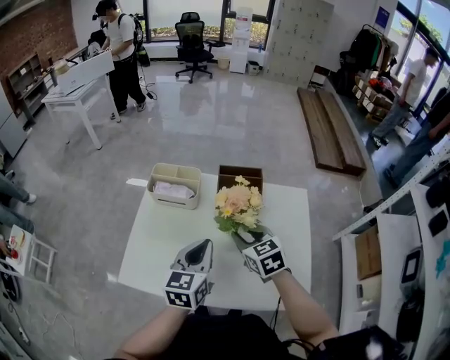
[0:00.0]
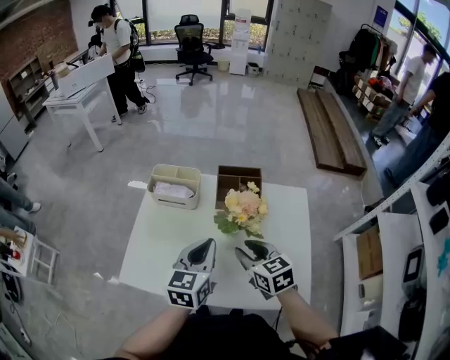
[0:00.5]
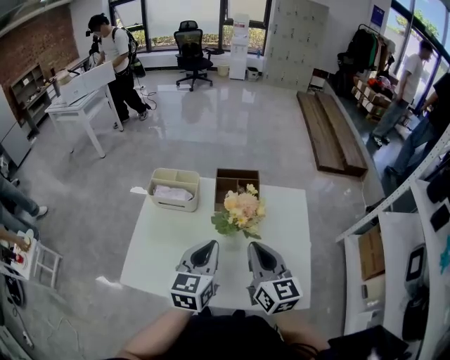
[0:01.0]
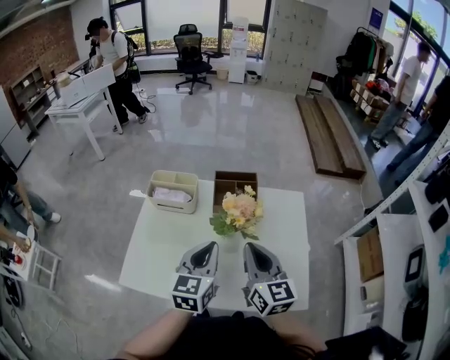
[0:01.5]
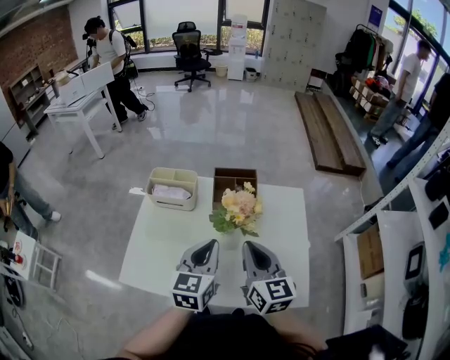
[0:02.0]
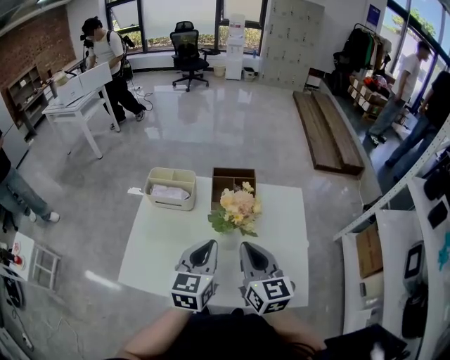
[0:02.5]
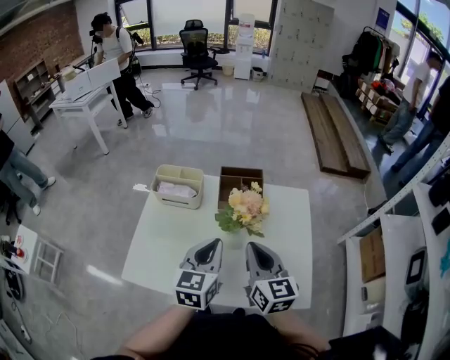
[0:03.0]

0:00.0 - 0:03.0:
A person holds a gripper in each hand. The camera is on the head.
0:00.0 - 0:01.5: The right gripper heads upward and backward, covering some 10 cm, rotates some 40 degrees, and closes.
0:01.5 - 0:03.0: The grippers move only a little.

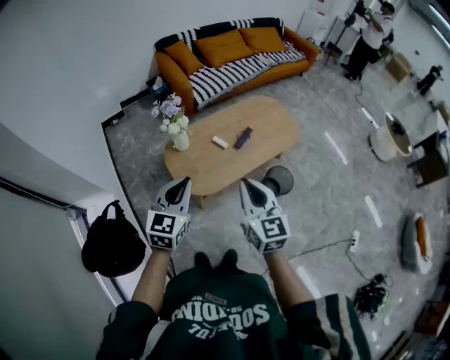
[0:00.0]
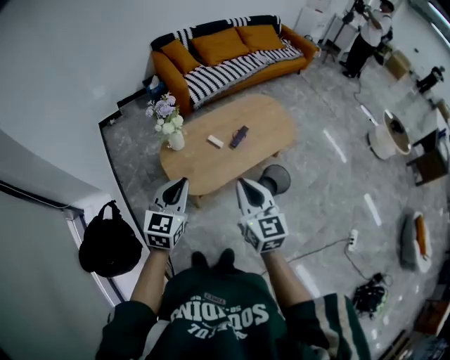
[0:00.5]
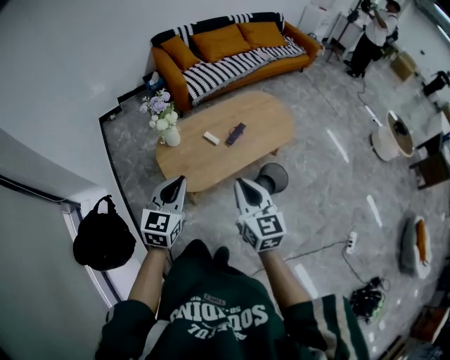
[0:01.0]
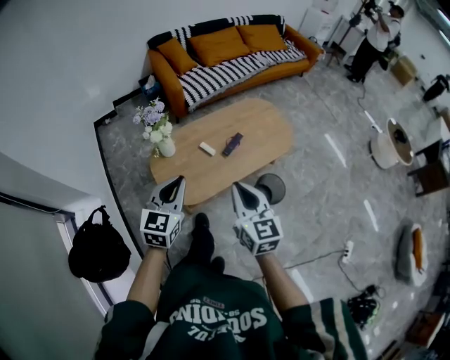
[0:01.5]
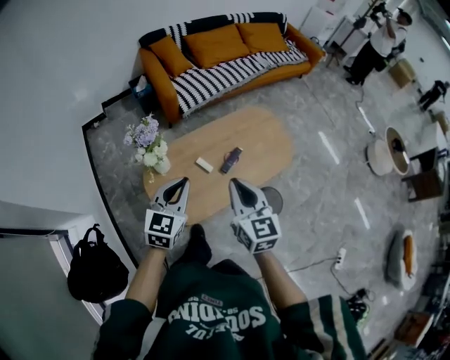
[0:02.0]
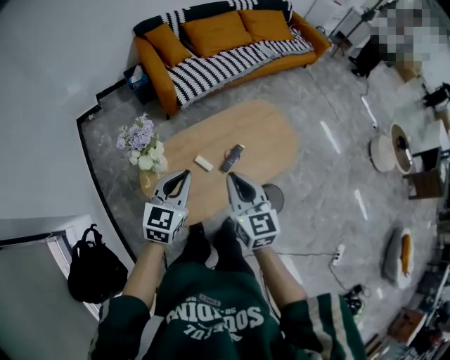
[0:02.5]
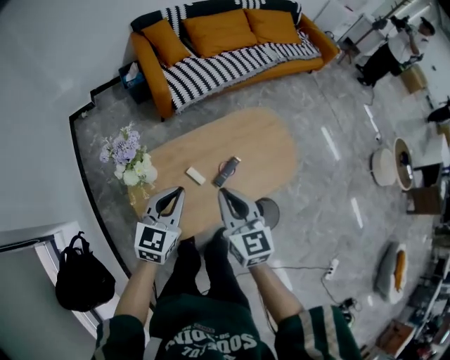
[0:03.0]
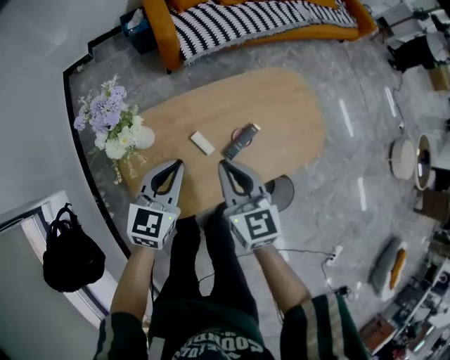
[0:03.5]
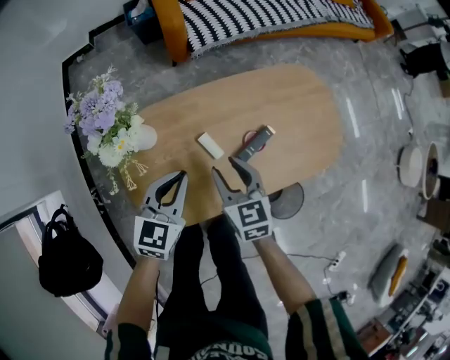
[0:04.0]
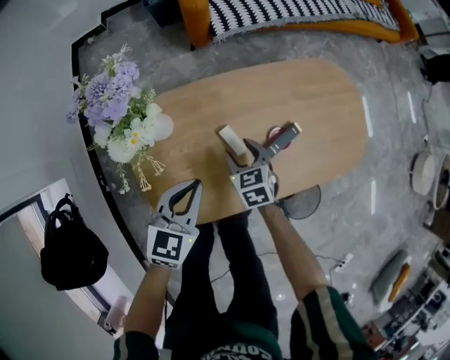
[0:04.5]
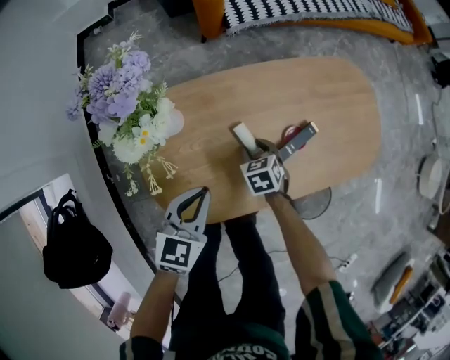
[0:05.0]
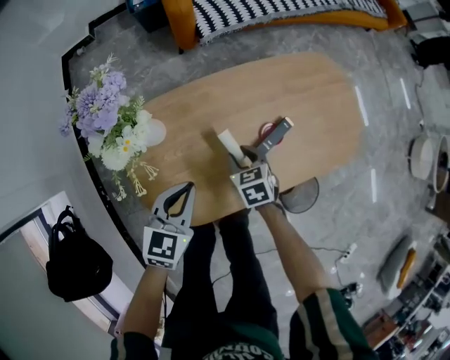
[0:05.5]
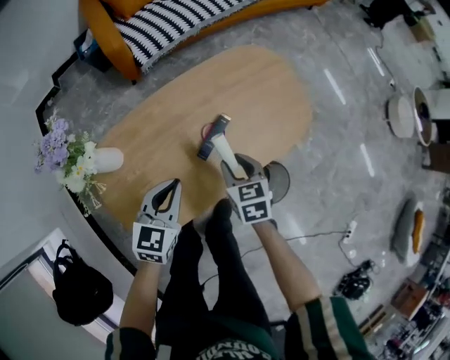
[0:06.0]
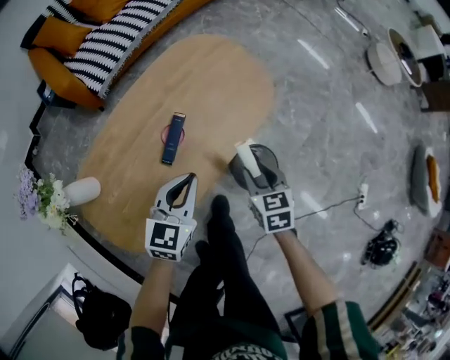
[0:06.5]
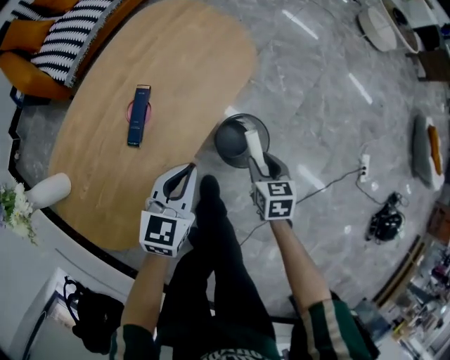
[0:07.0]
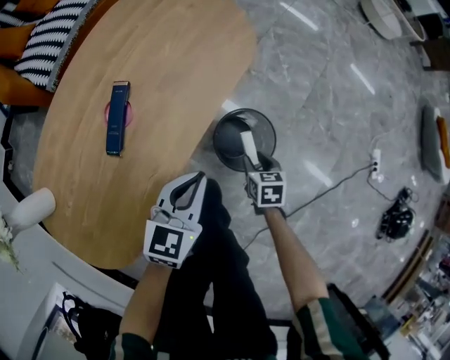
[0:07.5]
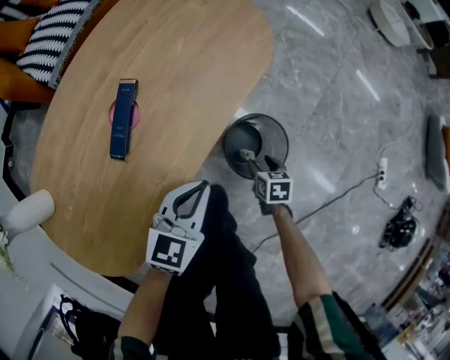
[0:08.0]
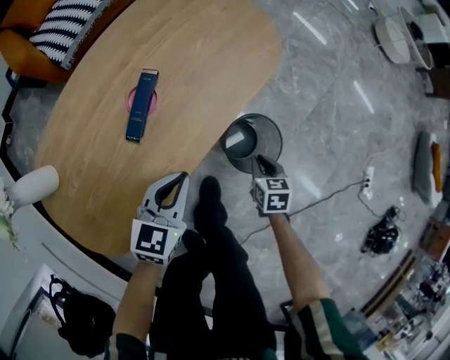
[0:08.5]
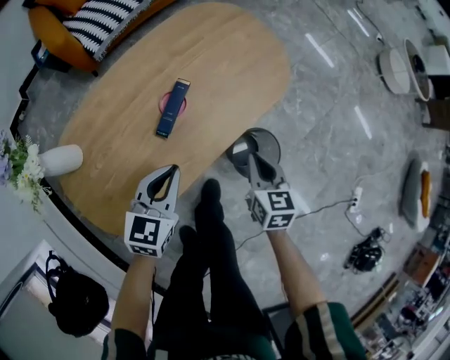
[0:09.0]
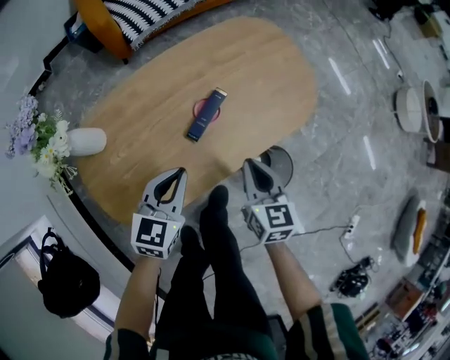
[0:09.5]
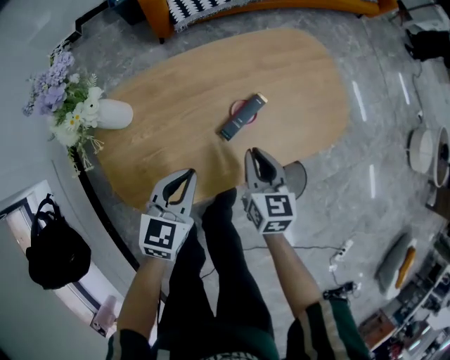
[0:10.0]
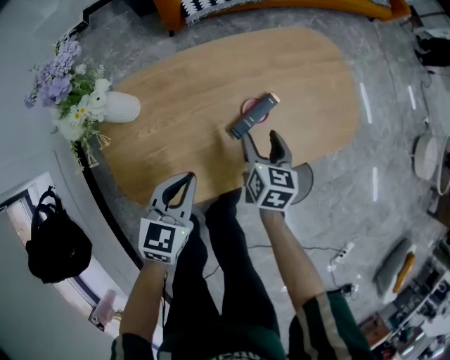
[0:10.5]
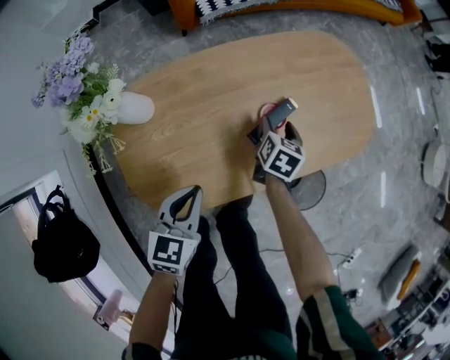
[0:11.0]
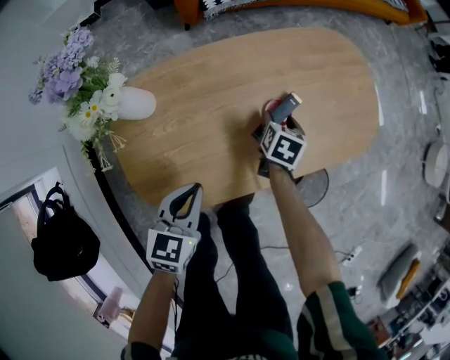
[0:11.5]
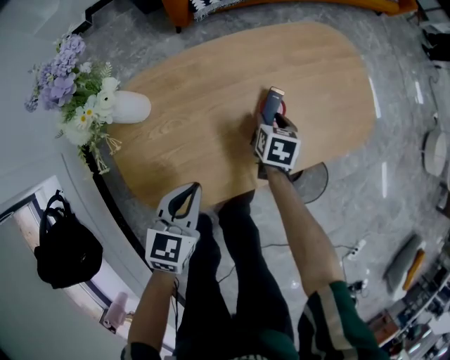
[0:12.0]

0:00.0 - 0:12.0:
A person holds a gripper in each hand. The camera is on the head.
0:00.0 - 0:02.0: The two grippers go some 25 cm forward.
0:02.0 - 0:04.0: Both grippers travel together downward and forward, some 35 cm. The right gripper turns by about 30 degrees, and opens.
0:04.0 - 0:06.0: The right gripper is displaced to the right by some 15 cm, goes downward and returns, about 25 cm each way, and turns by about 20 degrees. The left gripper moves to the right, some 10 cm.
0:06.0 - 0:08.0: The right gripper is displaced downward by some 35 cm, and rotates approximately 40 degrees. Meanwhile the left gripper shifts by about 35 cm, and swivels about 30 degrees.
0:08.0 - 0:10.0: The left gripper ends up roughly 30 cm from where it was, and turns by approximately 40 degrees. The right gripper shifts about 35 cm upward, changes its angle by approximately 40 degrees, and closes up.
0:10.0 - 0:12.0: The left gripper changes place by roughly 5 cm. Meanwhile the right gripper travels downward and forward by some 15 cm, changes its angle by approximately 30 degrees, and opens.

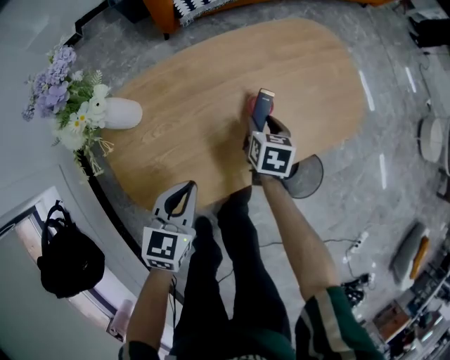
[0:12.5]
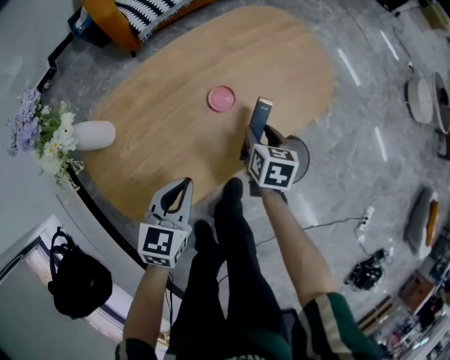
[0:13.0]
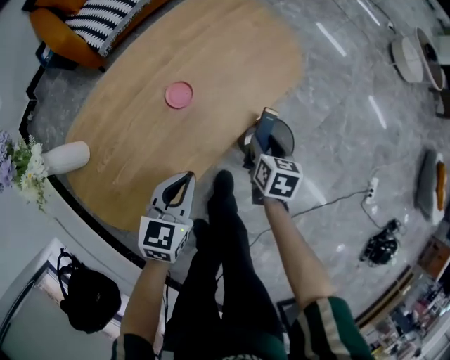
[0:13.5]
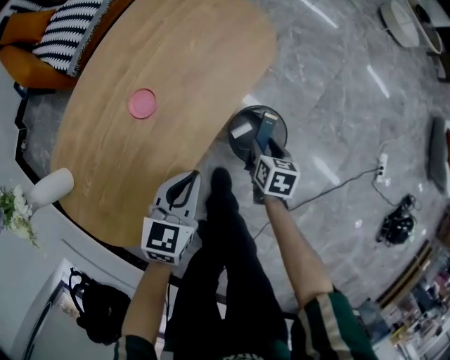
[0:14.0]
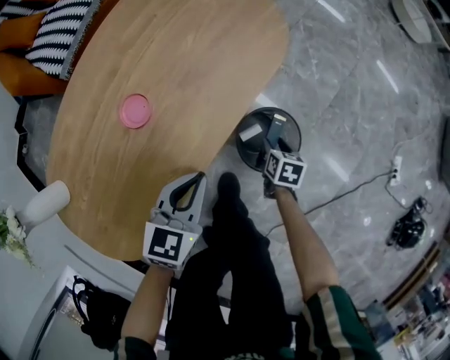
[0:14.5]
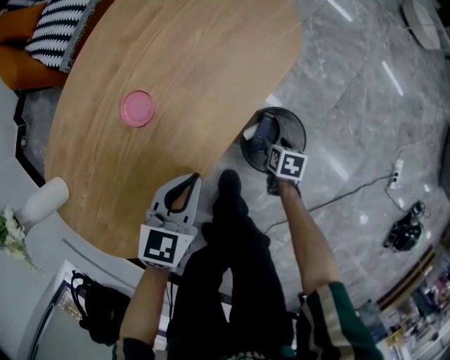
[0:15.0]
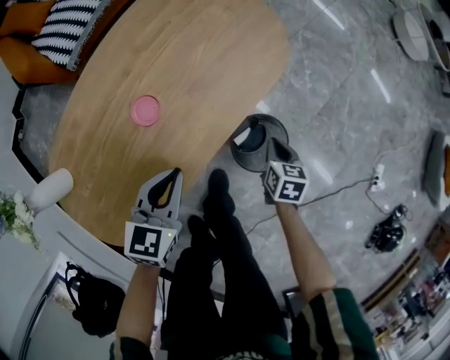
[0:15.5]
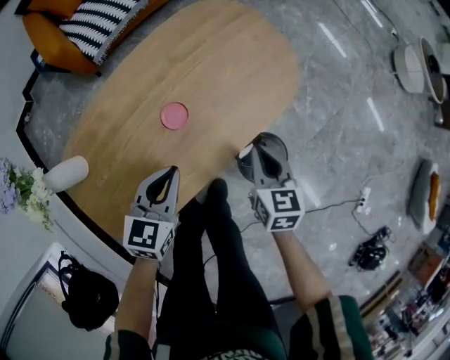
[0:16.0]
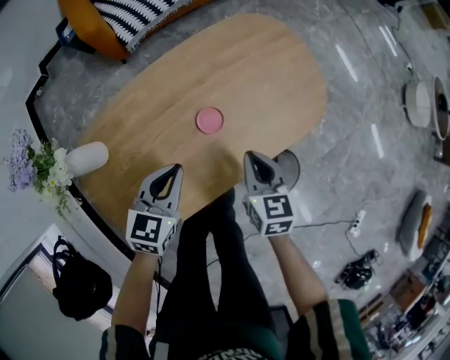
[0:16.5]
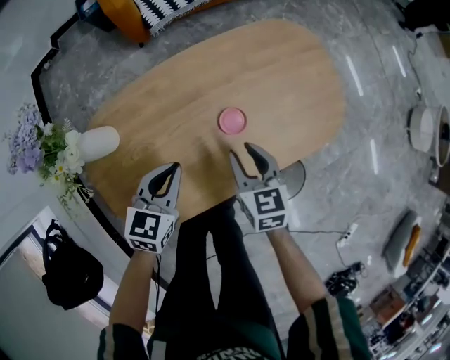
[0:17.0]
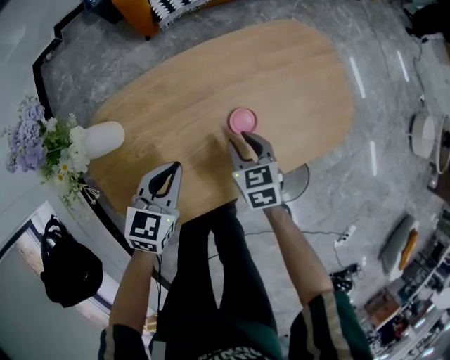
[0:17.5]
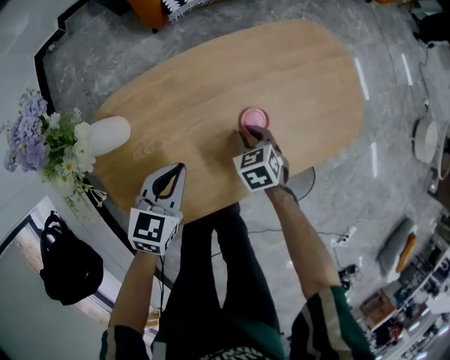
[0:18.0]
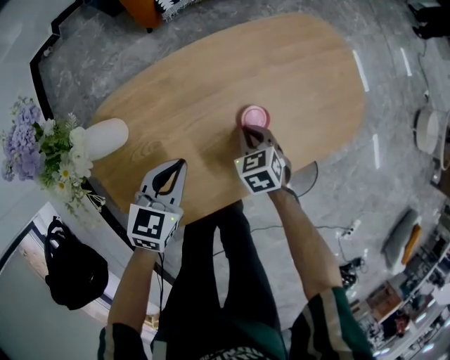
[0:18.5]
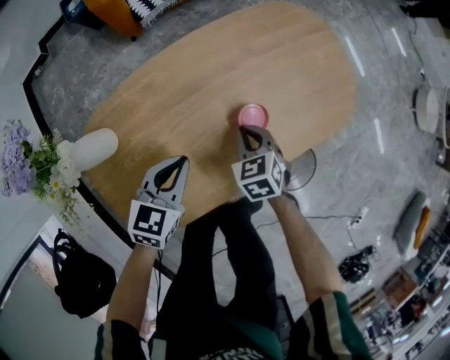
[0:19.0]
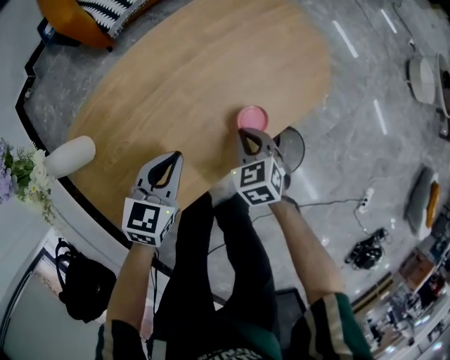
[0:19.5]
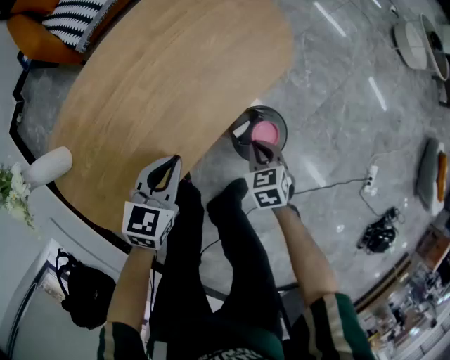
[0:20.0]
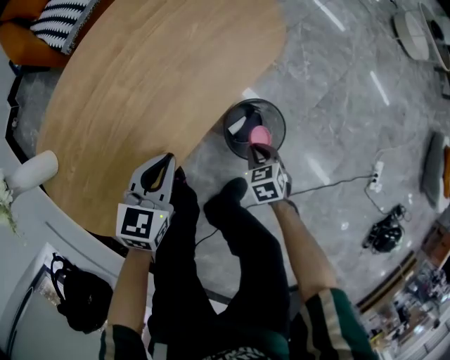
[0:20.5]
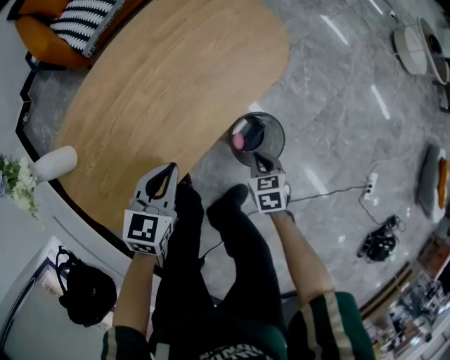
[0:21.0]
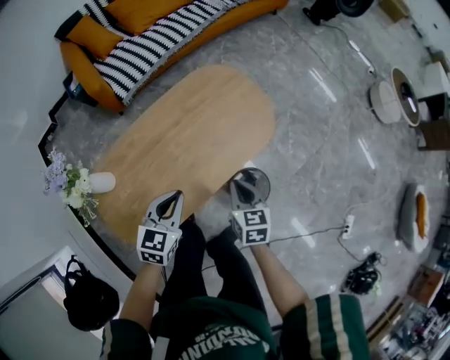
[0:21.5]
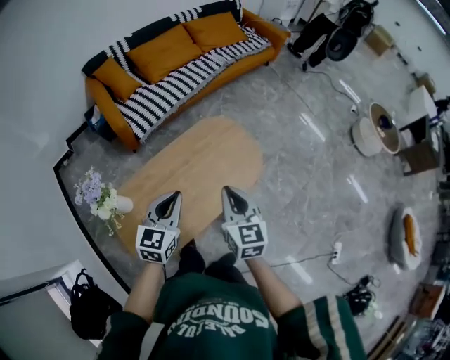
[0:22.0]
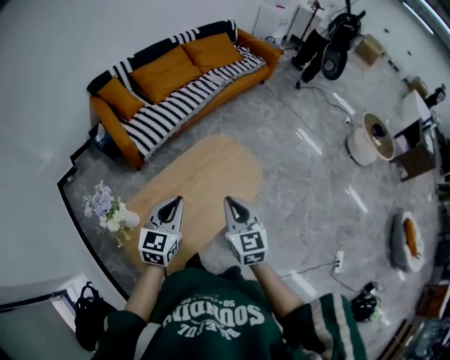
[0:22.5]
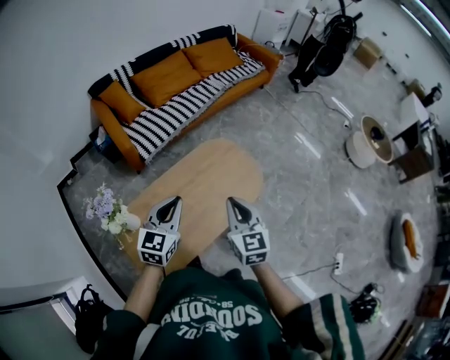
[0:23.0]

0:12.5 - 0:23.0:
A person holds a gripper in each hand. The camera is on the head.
0:12.5 - 0:14.5: The right gripper ends up some 40 cm from where it was, and turns by about 40 degrees; the left gripper changes place by about 30 cm, and rotates roughly 30 degrees.
0:14.5 - 0:16.5: The right gripper moves upward, approximately 30 cm, rotates about 50 degrees, and closes. The left gripper moves some 25 cm, and rotates some 20 degrees.
0:16.5 - 0:19.0: The left gripper shifts about 10 cm to the left and downward, while the right gripper heads downward and to the left, covering some 15 cm, rotates some 30 degrees, and opens, then closes once more.
0:19.0 - 0:21.0: The left gripper shifts some 20 cm to the right. The right gripper is displaced to the right by about 30 cm, and turns by roughly 30 degrees.
0:21.0 - 0:23.0: The two grippers go roughly 50 cm upward. The right gripper tilts its fingers some 40 degrees upward. The left gripper changes its angle by roughly 20 degrees.

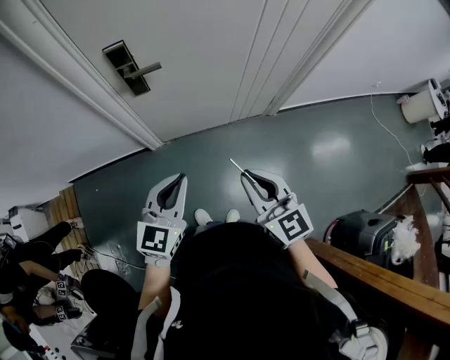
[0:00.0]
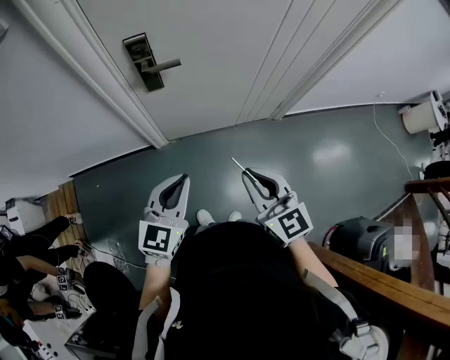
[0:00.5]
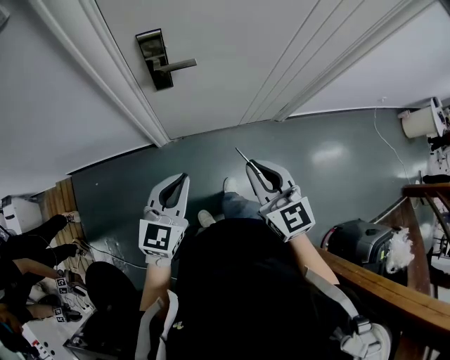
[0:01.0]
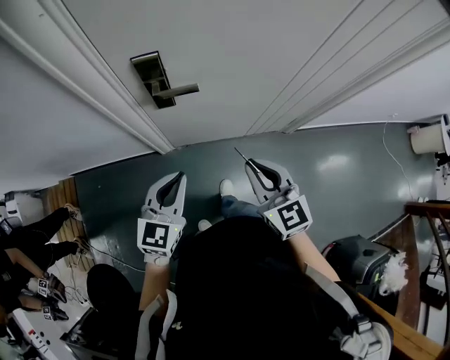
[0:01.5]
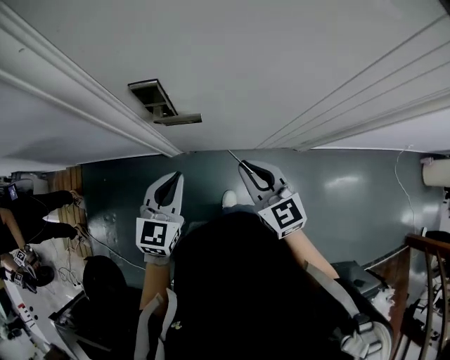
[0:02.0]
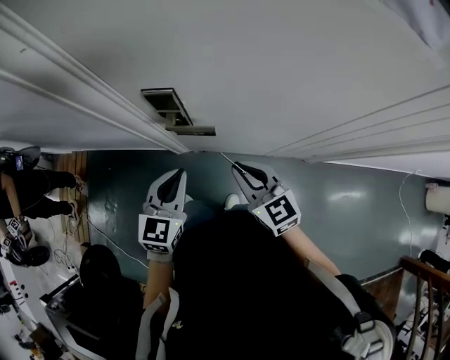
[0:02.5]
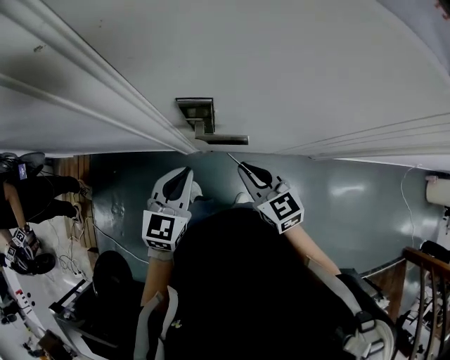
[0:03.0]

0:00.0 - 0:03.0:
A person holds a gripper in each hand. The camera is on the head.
0:00.0 - 0:01.5: The right gripper travels forward by some 20 cm, while the left gripper travels forward and to the left by approximately 15 cm.
0:01.5 - 0:03.0: The right gripper moves forward, to the left and downward, roughly 20 cm, and swivels roughly 20 degrees. The left gripper heads forward, covering roughly 15 cm.
